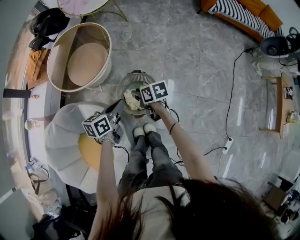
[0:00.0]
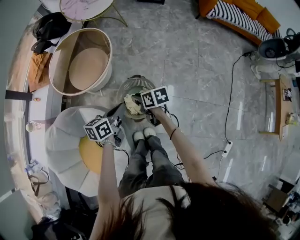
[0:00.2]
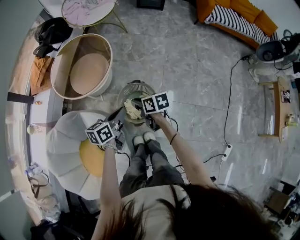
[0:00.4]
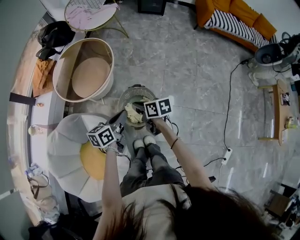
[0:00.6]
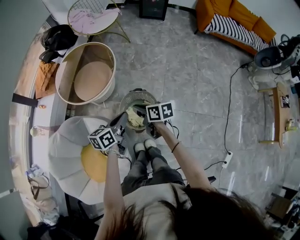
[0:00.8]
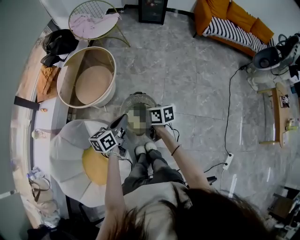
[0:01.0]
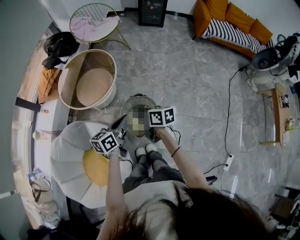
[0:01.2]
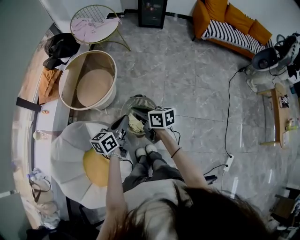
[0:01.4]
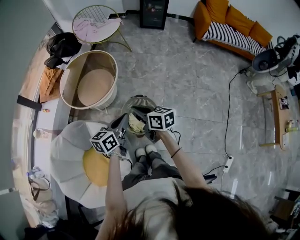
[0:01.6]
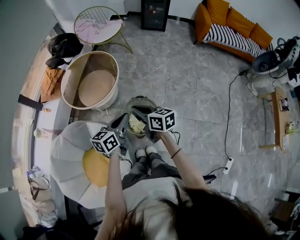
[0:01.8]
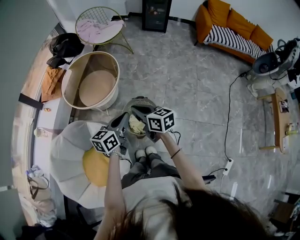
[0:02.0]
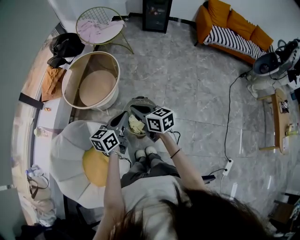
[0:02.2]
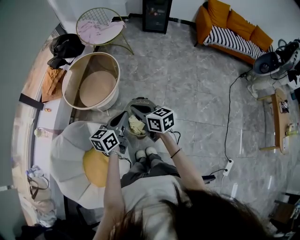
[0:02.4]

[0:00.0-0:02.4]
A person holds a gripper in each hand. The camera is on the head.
0:00.0 to 0:01.2: The left gripper shifts some 10 cm upward; the right gripper goes some 15 cm upward, and rotates some 20 degrees.
0:01.2 to 0:02.4: The right gripper goes approximately 5 cm upward, and swivels approximately 20 degrees.

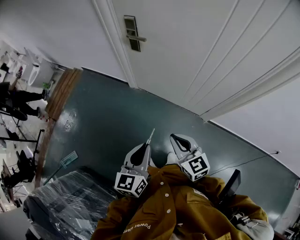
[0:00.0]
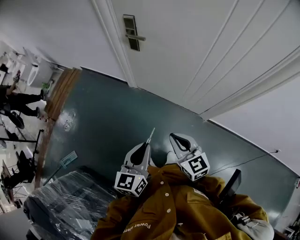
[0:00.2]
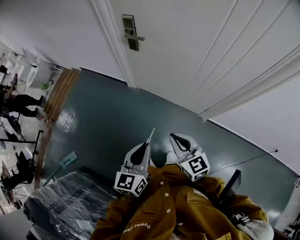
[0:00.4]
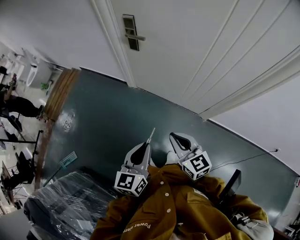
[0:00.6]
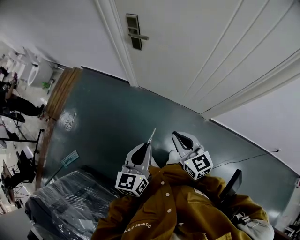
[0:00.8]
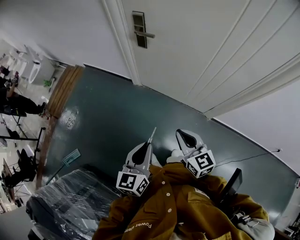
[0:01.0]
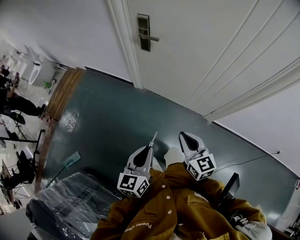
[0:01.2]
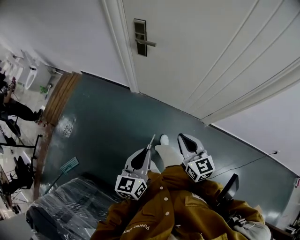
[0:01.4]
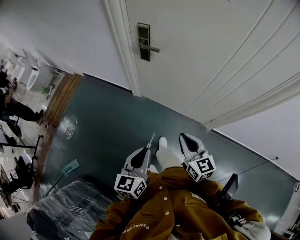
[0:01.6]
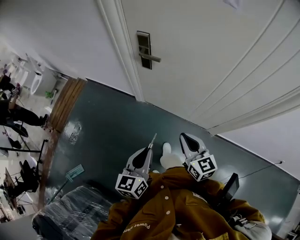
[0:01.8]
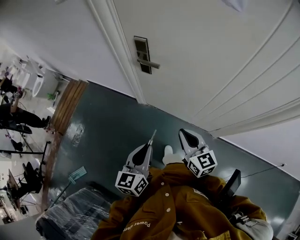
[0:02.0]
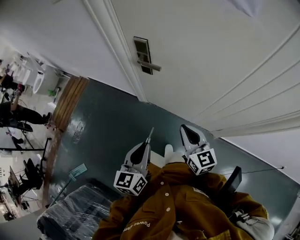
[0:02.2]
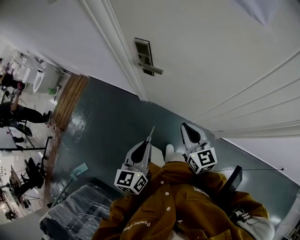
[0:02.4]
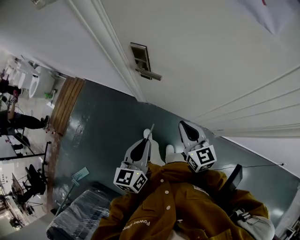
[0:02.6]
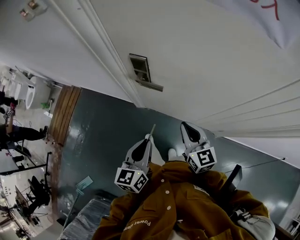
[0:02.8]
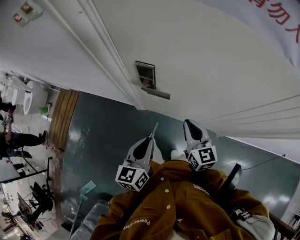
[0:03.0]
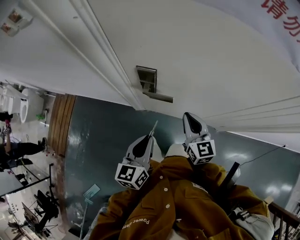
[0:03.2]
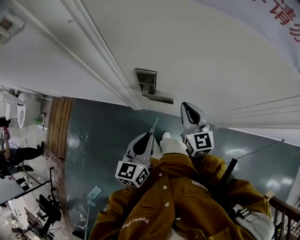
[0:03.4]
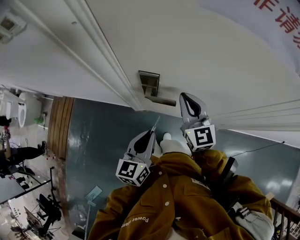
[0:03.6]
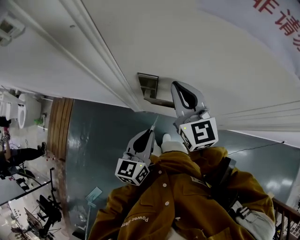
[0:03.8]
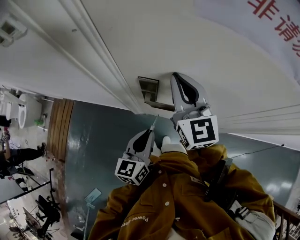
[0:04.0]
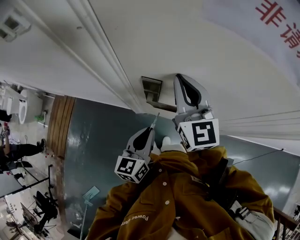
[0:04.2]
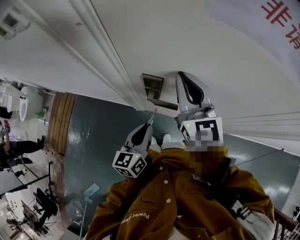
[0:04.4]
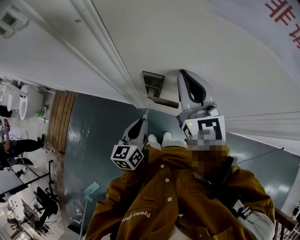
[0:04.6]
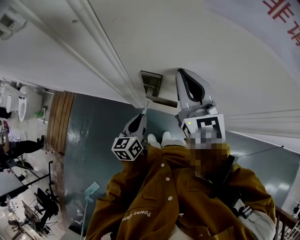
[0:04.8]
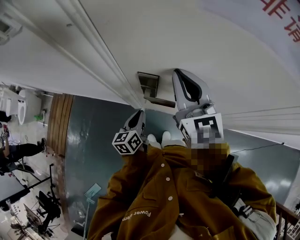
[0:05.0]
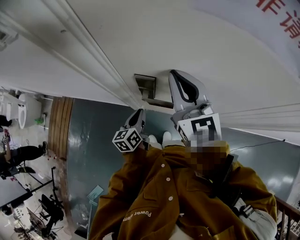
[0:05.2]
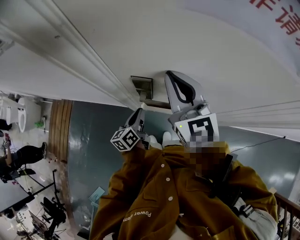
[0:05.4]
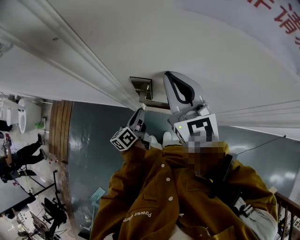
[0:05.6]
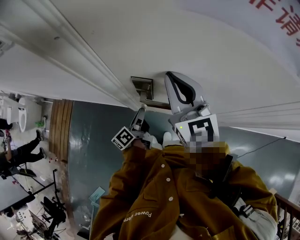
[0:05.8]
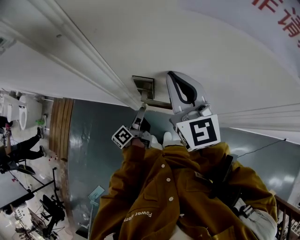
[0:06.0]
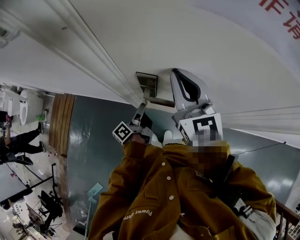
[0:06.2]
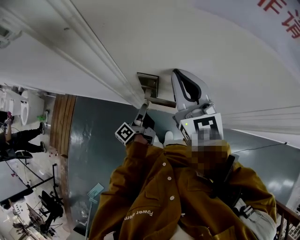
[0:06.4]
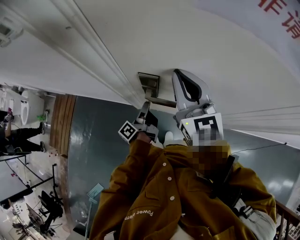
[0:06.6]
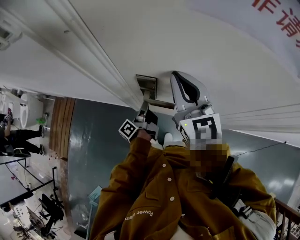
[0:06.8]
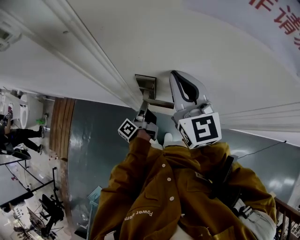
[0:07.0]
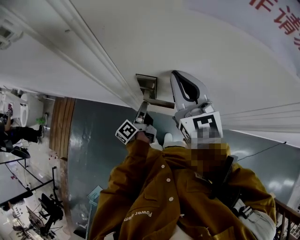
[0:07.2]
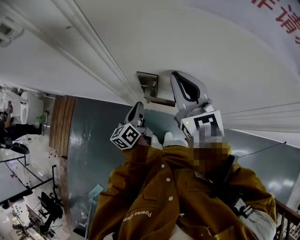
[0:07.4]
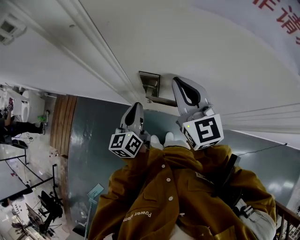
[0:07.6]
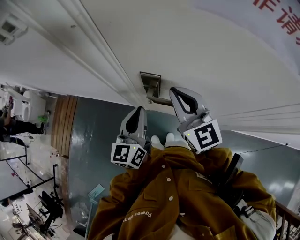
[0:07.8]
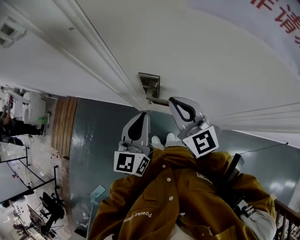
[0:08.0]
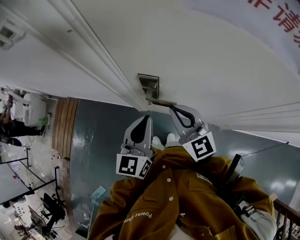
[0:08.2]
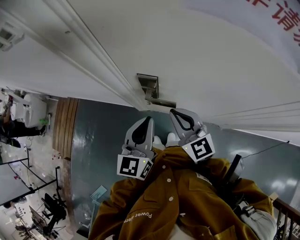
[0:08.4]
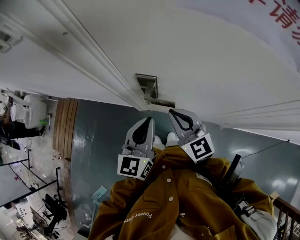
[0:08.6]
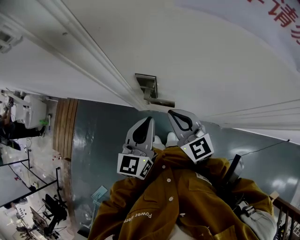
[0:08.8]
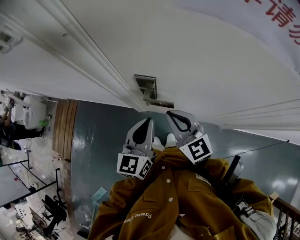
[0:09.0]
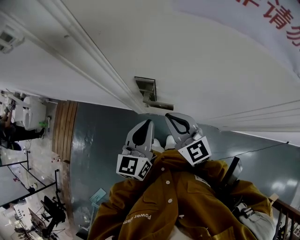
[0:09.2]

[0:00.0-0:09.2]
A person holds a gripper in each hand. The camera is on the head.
0:00.0 to 0:01.6: The left gripper travels to the left and forward by roughly 10 cm; the right gripper heads forward, covering roughly 10 cm.
0:01.6 to 0:03.0: Both grippers move forward, about 35 cm.
0:03.0 to 0:04.6: The left gripper moves forward and to the left, about 15 cm. The right gripper travels upward, forward and to the left by about 25 cm.
0:04.6 to 0:06.2: The left gripper shifts about 10 cm forward and downward, and rotates around the line of its fingers by some 60 degrees, counterclockwise from behind.
0:06.2 to 0:07.6: The left gripper shifts about 10 cm upward, and rolls clockwise, seen from behind, by approximately 60 degrees.
0:07.6 to 0:09.2: The left gripper travels backward and upward by about 10 cm. The right gripper shifts approximately 10 cm downward and backward.

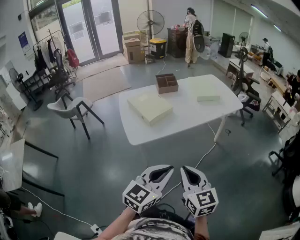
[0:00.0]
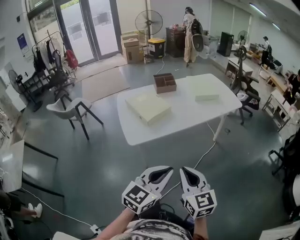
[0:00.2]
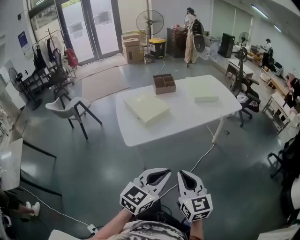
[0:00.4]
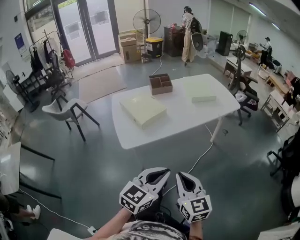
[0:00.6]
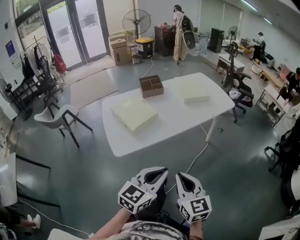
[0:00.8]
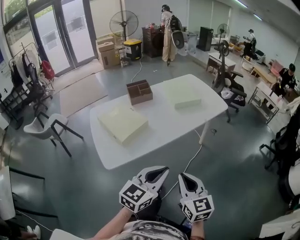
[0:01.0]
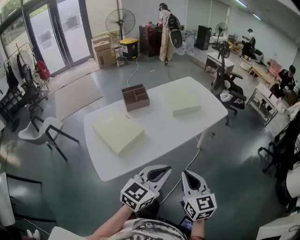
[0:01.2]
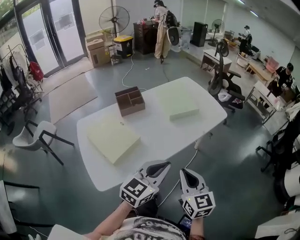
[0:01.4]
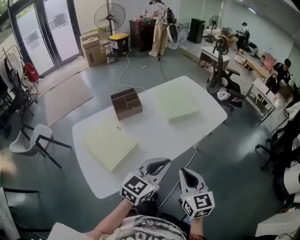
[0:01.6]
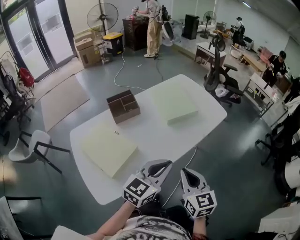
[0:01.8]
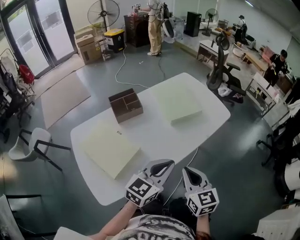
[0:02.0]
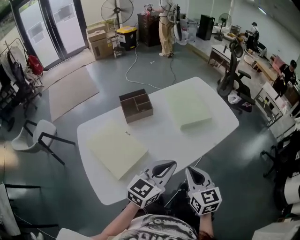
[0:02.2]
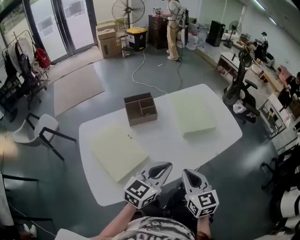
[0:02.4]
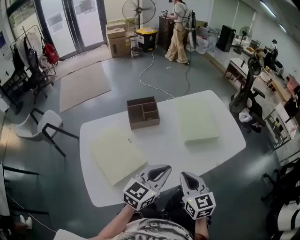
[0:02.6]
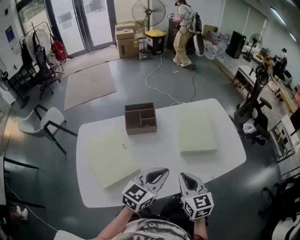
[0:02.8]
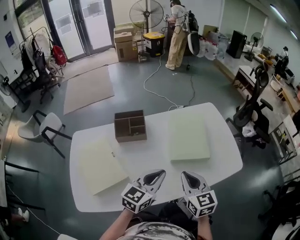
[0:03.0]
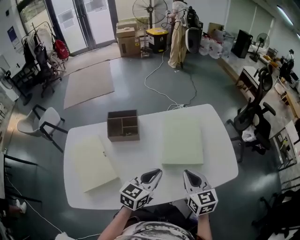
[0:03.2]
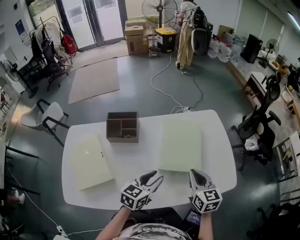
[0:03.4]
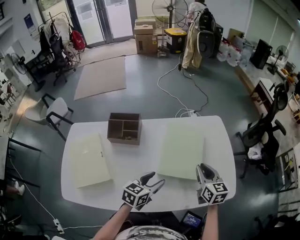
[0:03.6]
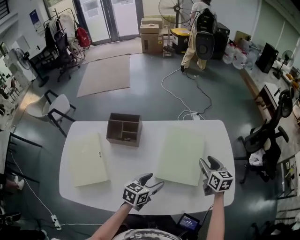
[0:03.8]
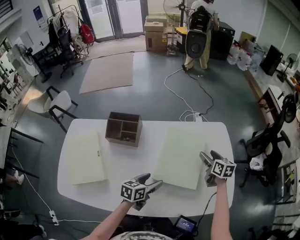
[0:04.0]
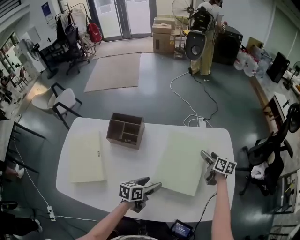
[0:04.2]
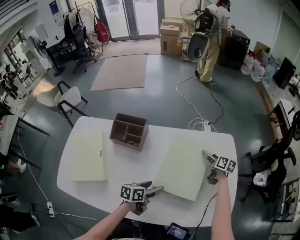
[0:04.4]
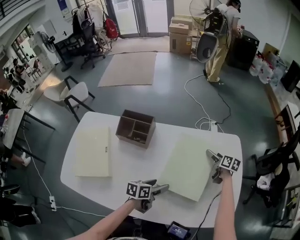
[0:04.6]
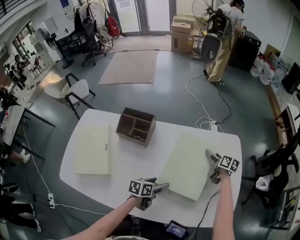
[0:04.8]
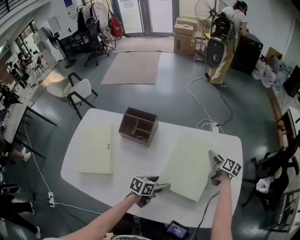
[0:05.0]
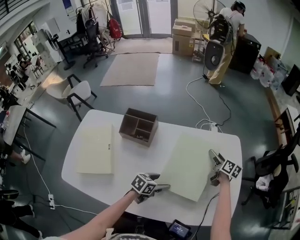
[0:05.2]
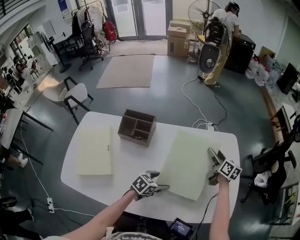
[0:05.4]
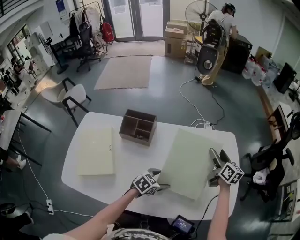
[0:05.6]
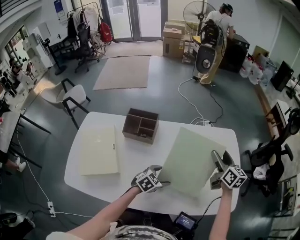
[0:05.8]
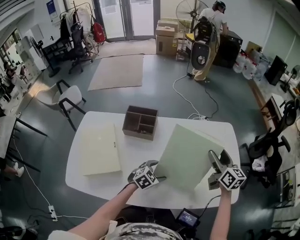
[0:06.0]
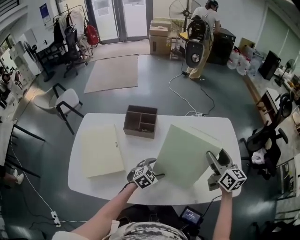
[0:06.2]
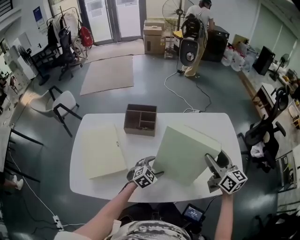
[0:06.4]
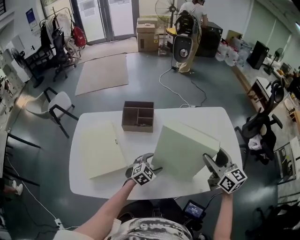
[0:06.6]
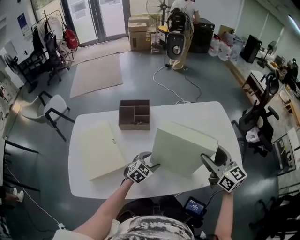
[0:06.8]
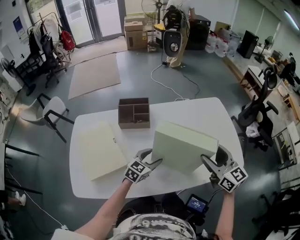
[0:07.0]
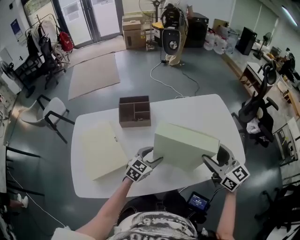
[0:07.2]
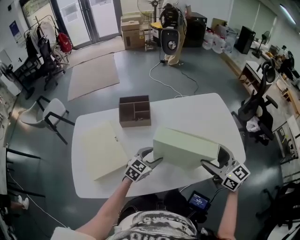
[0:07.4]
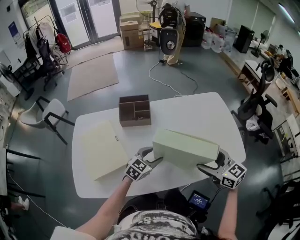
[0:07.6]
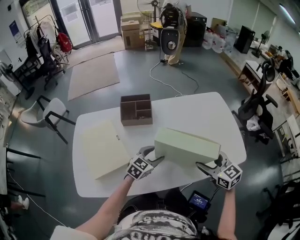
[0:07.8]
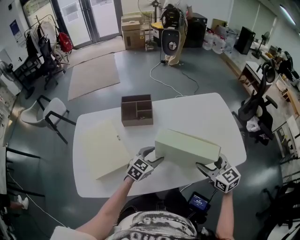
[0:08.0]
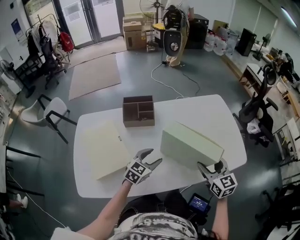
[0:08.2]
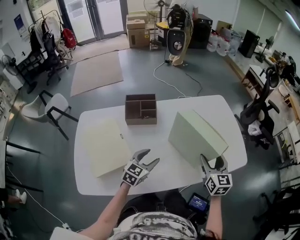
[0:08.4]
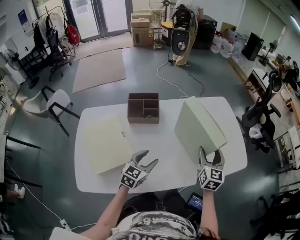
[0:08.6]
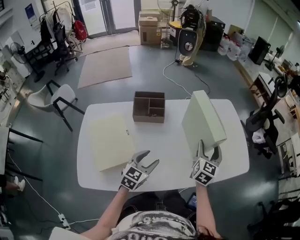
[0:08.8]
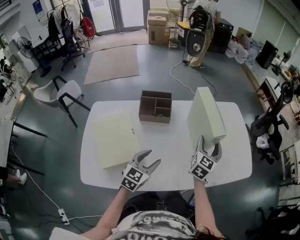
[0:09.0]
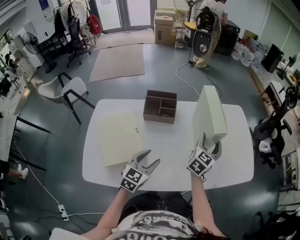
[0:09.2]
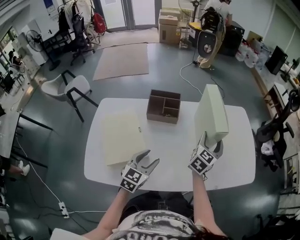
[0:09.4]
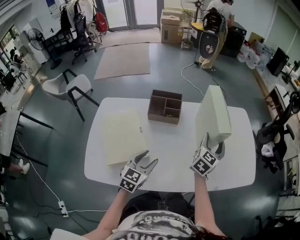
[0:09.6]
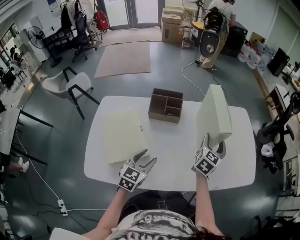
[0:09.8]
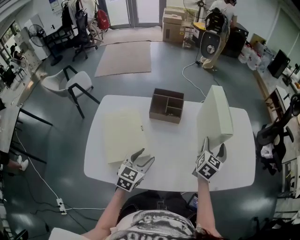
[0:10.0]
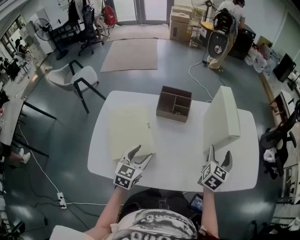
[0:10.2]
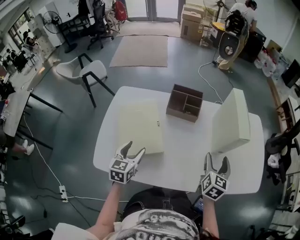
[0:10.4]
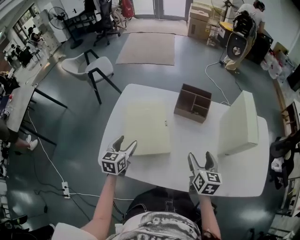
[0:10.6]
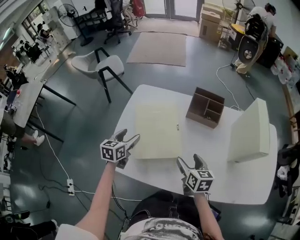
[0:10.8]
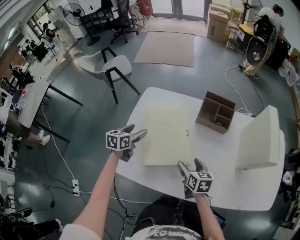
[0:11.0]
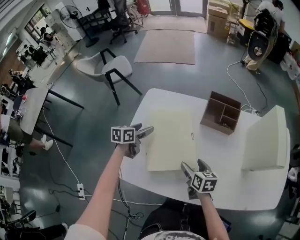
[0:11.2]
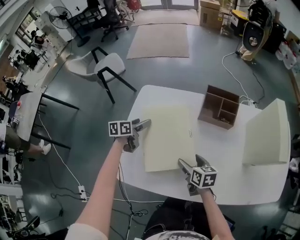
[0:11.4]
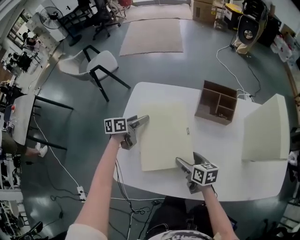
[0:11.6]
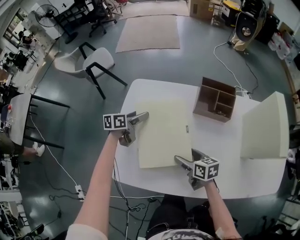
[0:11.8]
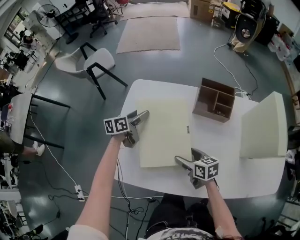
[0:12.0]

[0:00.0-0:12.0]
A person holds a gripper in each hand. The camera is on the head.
0:00.0 to 0:01.6: Both grippers travel together forward, approximately 35 cm.
0:01.6 to 0:03.0: Both grippers travel together forward, roughly 25 cm. The right gripper rotates approximately 20 degrees. Meanwhile the left gripper changes its angle by about 20 degrees.
0:03.0 to 0:04.4: The left gripper shifts about 25 cm downward and forward, rolls counterclockwise, seen from behind, by about 50 degrees, and opens. The right gripper goes some 50 cm forward, downward and to the right, swivels some 40 degrees, and opens its fingers.
0:04.4 to 0:06.0: The right gripper goes about 25 cm upward and backward, and swivels some 30 degrees; the left gripper rolls clockwise, seen from behind, by roughly 60 degrees.
0:06.0 to 0:07.6: The right gripper heads backward, covering roughly 20 cm, and swivels some 20 degrees. The left gripper moves to the left, roughly 5 cm.
0:07.6 to 0:09.0: The right gripper travels forward by roughly 10 cm, and swivels some 60 degrees. The left gripper travels to the left, backward and upward by about 10 cm.
0:09.0 to 0:10.4: The right gripper goes roughly 10 cm backward and to the left, and changes its angle by some 20 degrees, while the left gripper moves to the left and backward, some 20 cm, and swivels approximately 30 degrees.
0:10.4 to 0:12.0: The left gripper changes place by about 25 cm, and turns by approximately 40 degrees, while the right gripper ends up some 35 cm from where it was, and turns by about 60 degrees.
